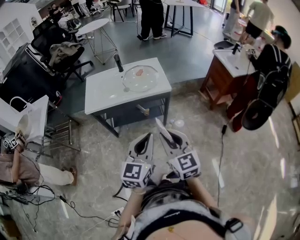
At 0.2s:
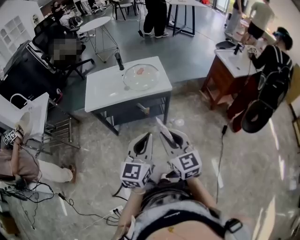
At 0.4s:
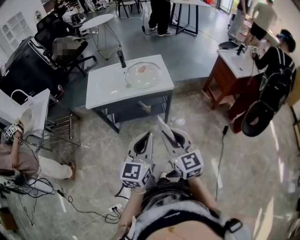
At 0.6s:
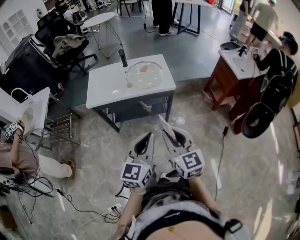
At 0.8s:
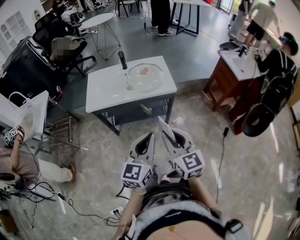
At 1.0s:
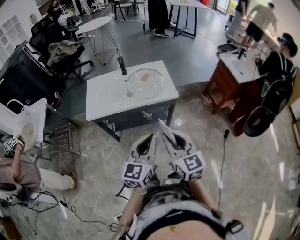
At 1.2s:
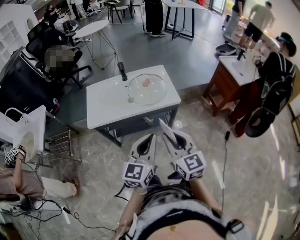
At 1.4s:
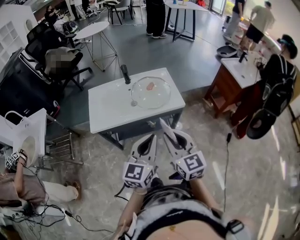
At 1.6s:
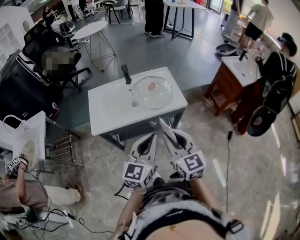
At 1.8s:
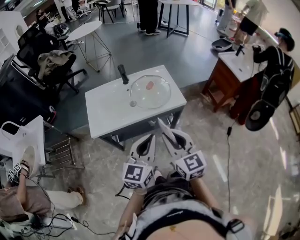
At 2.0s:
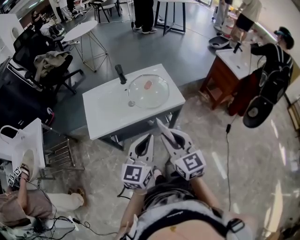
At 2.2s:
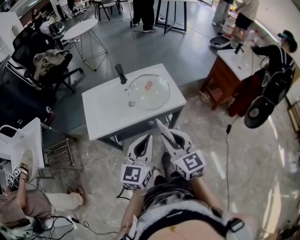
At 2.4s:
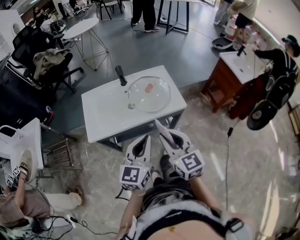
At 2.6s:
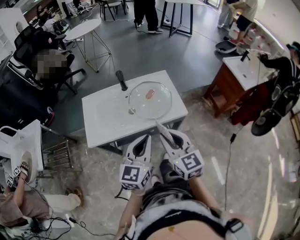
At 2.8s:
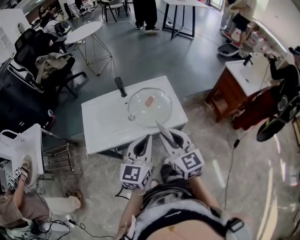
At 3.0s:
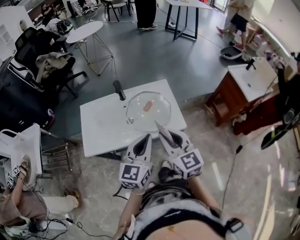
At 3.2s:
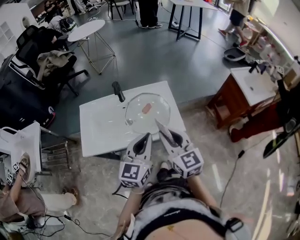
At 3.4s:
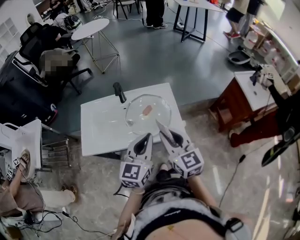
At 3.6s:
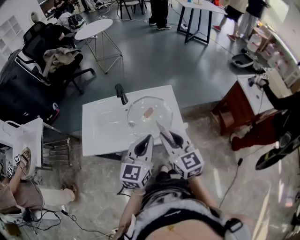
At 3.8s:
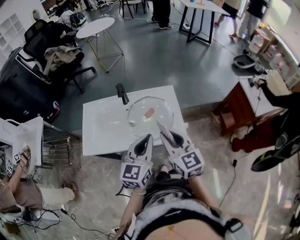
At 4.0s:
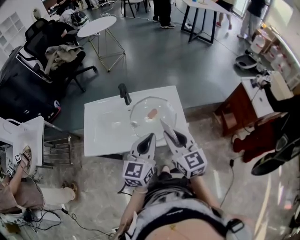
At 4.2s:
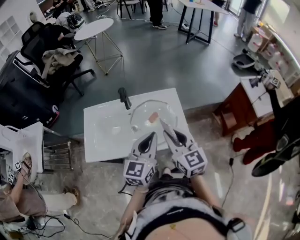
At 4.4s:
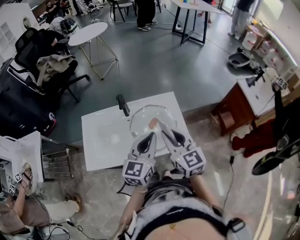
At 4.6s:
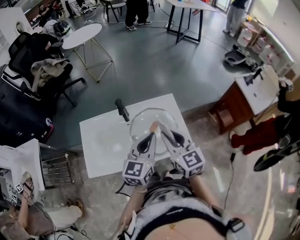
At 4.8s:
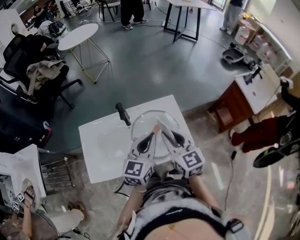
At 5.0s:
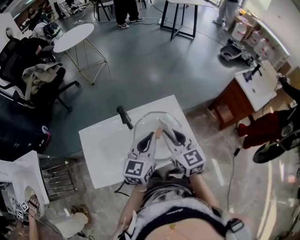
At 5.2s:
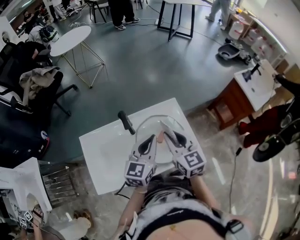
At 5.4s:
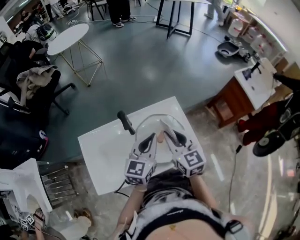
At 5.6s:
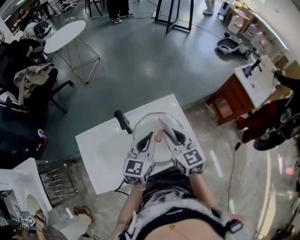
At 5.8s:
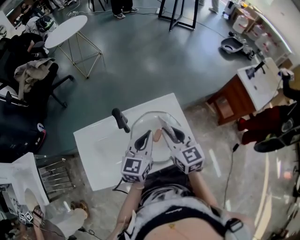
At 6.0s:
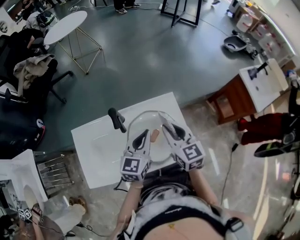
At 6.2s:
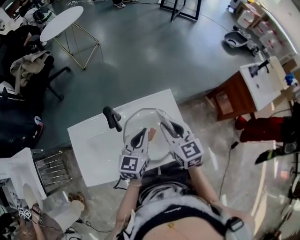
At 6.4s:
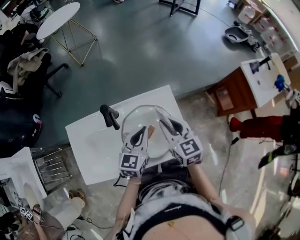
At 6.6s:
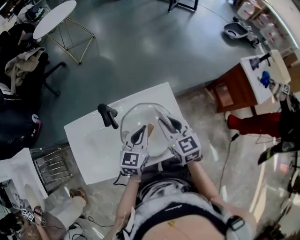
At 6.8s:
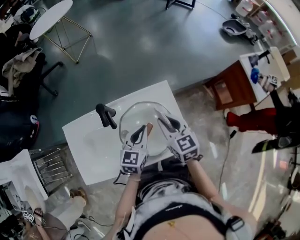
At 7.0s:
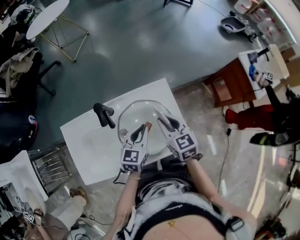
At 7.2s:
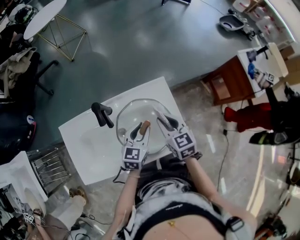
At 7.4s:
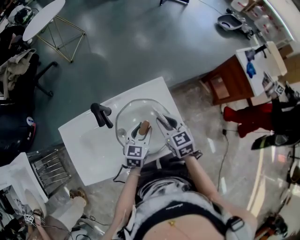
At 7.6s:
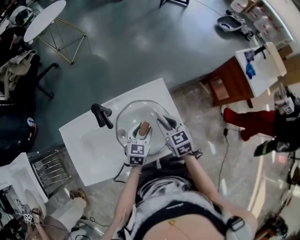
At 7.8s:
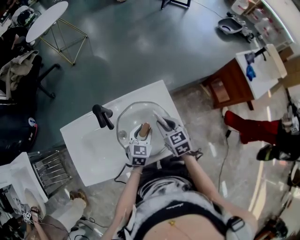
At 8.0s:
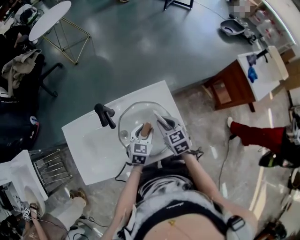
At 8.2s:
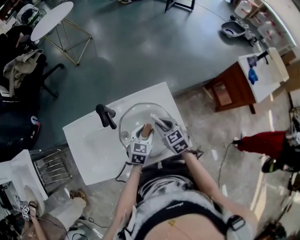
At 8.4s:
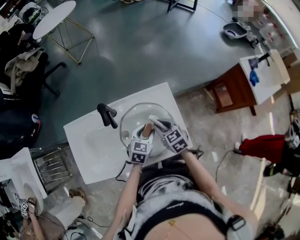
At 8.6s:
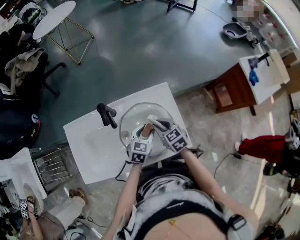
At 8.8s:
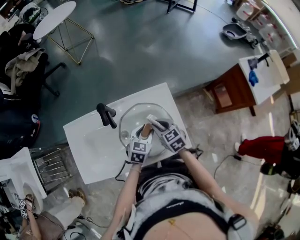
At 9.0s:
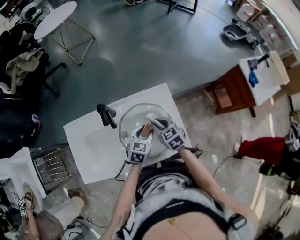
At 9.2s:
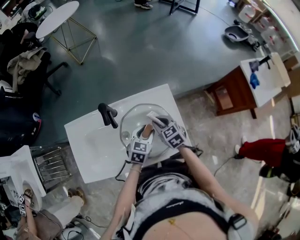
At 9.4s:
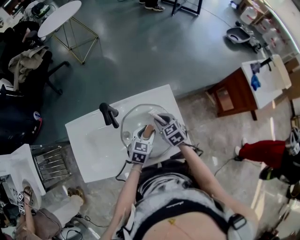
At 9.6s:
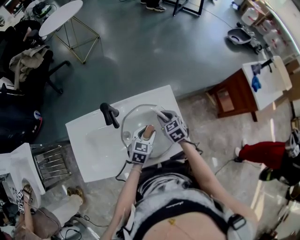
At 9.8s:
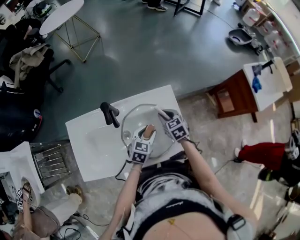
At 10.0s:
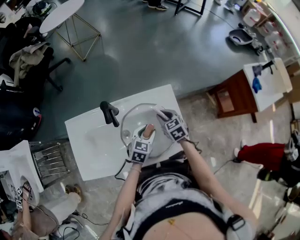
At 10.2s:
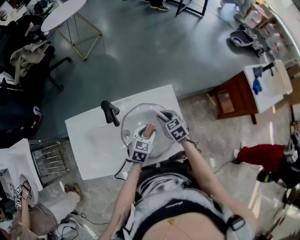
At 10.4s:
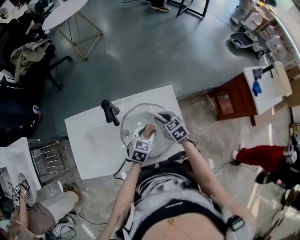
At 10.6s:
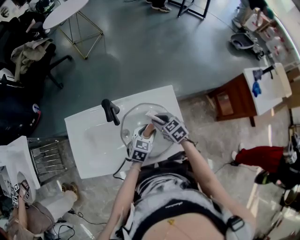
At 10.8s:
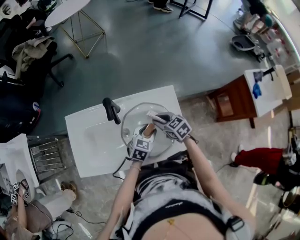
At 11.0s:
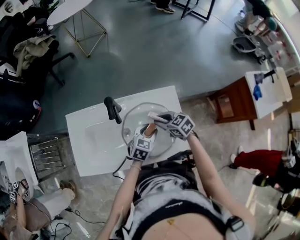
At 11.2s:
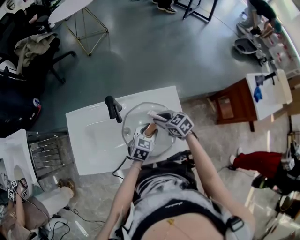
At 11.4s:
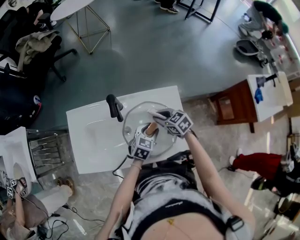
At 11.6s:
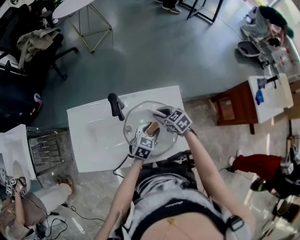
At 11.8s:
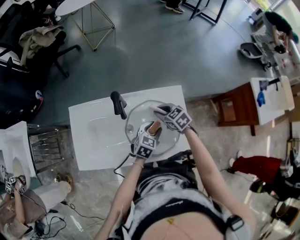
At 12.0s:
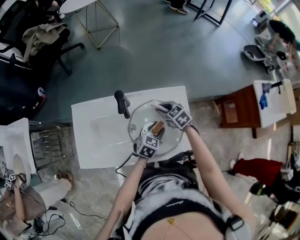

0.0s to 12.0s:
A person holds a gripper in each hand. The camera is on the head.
0.0s to 1.6s: Both grippers move forward and to the left, about 20 cm.
1.6s to 3.0s: The two grippers go about 20 cm forward.
3.0s to 4.4s: The two grippers go about 10 cm forward.
4.4s to 6.0s: The two grippers go about 15 cm forward and downward.
6.0s to 7.6s: Both grippers move downward, approximately 15 cm. The left gripper changes its angle by about 20 degrees, and opens.
7.6s to 9.0s: The right gripper ends up about 5 cm from where it was.
9.0s to 10.4s: There are only small adjustments of the grippers.
10.4s to 12.0s: The right gripper changes place by roughly 5 cm.

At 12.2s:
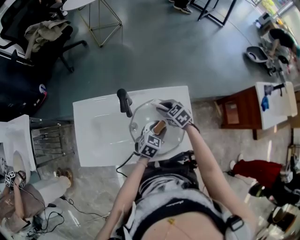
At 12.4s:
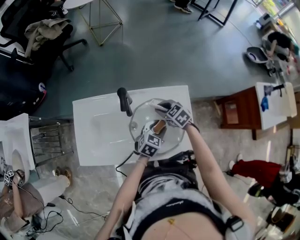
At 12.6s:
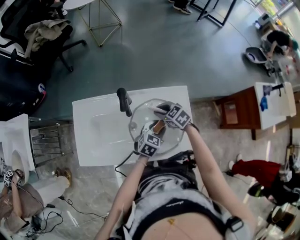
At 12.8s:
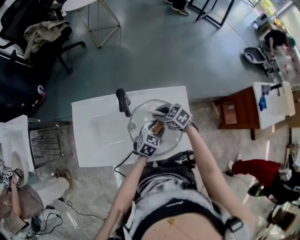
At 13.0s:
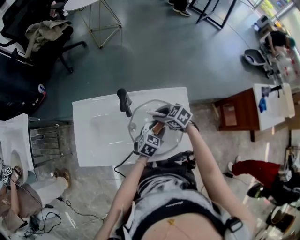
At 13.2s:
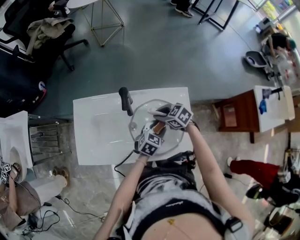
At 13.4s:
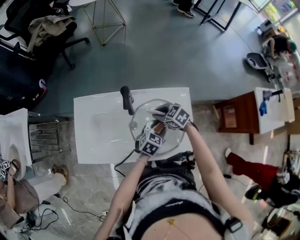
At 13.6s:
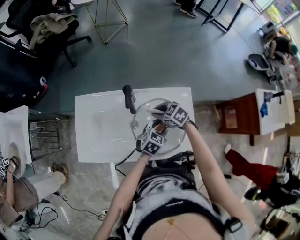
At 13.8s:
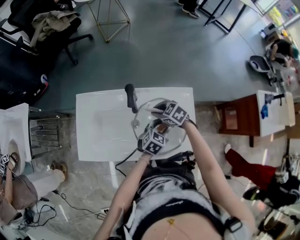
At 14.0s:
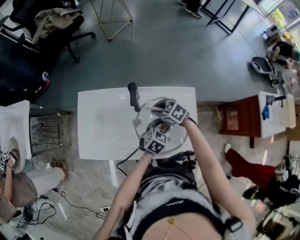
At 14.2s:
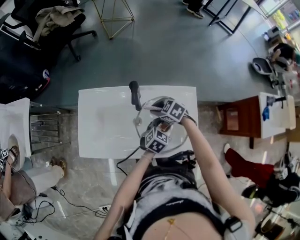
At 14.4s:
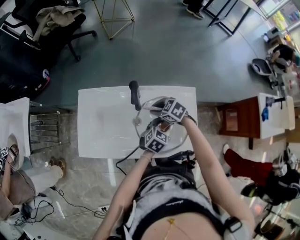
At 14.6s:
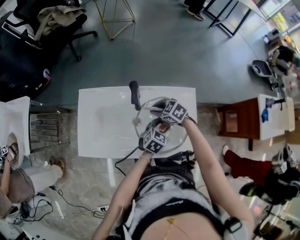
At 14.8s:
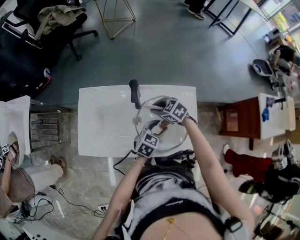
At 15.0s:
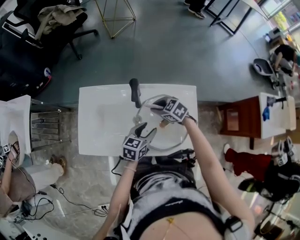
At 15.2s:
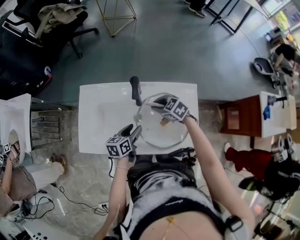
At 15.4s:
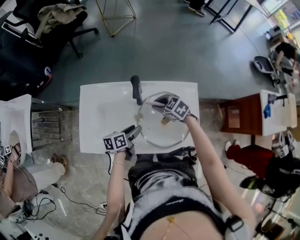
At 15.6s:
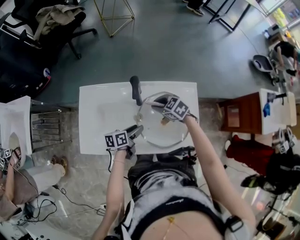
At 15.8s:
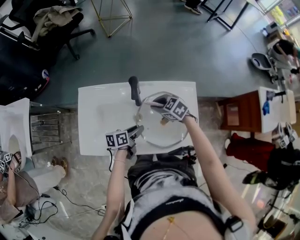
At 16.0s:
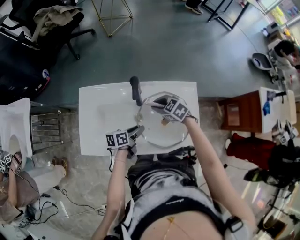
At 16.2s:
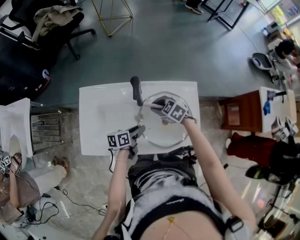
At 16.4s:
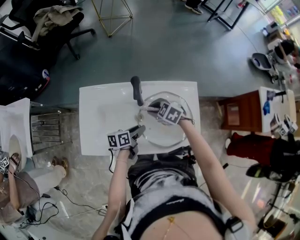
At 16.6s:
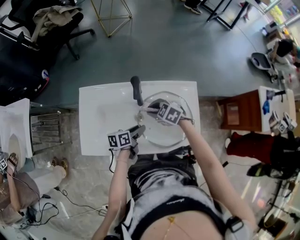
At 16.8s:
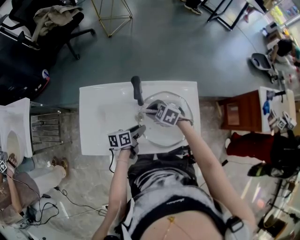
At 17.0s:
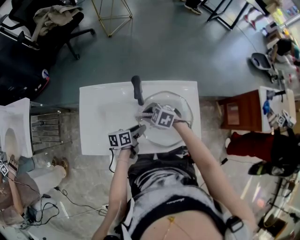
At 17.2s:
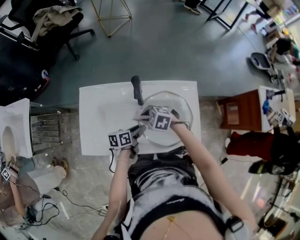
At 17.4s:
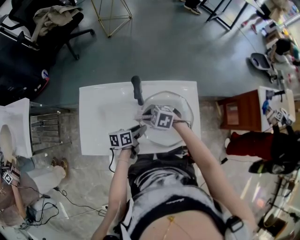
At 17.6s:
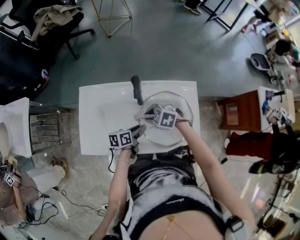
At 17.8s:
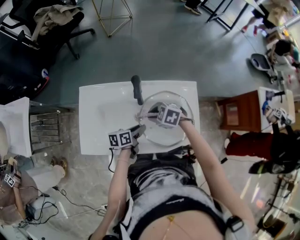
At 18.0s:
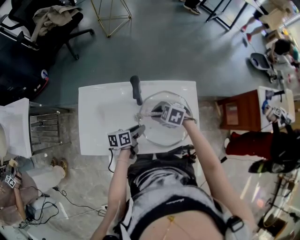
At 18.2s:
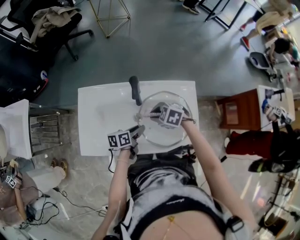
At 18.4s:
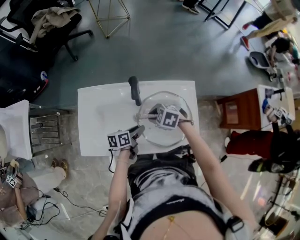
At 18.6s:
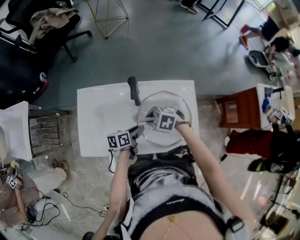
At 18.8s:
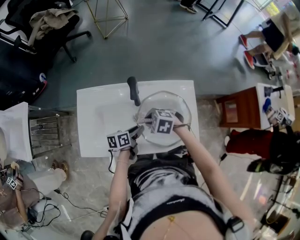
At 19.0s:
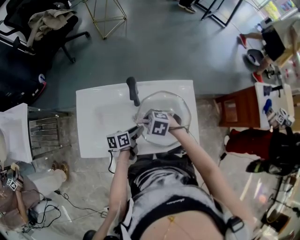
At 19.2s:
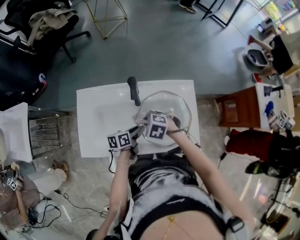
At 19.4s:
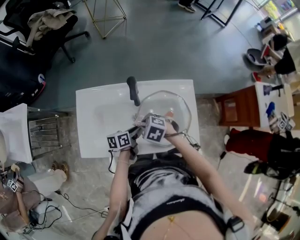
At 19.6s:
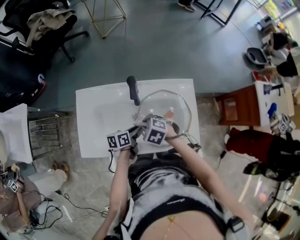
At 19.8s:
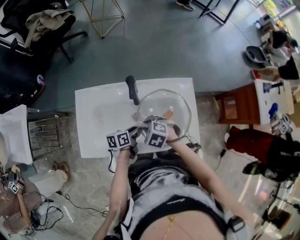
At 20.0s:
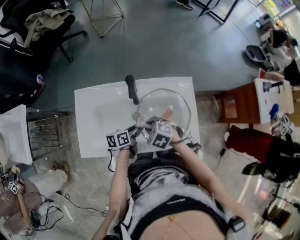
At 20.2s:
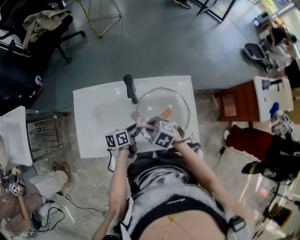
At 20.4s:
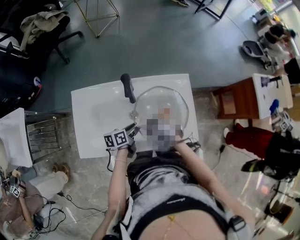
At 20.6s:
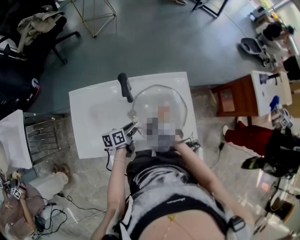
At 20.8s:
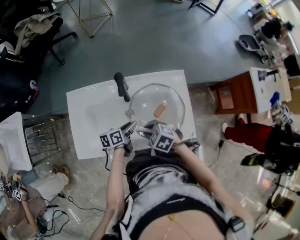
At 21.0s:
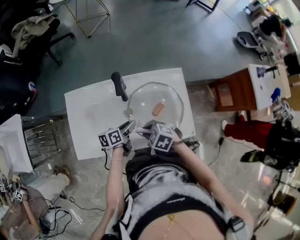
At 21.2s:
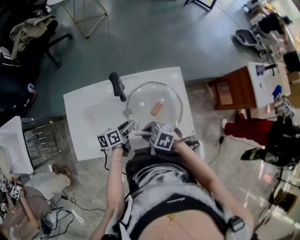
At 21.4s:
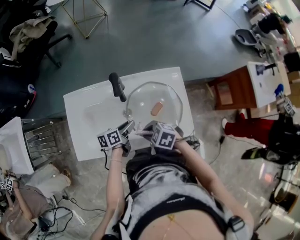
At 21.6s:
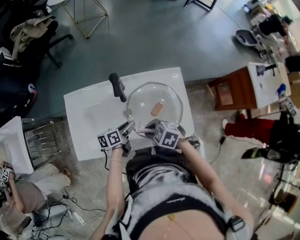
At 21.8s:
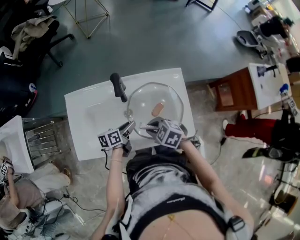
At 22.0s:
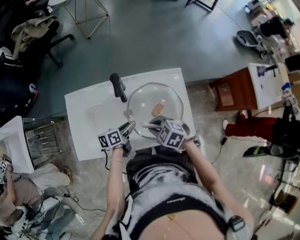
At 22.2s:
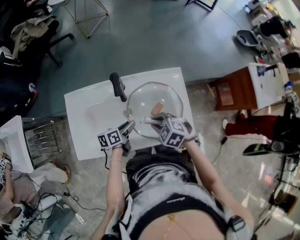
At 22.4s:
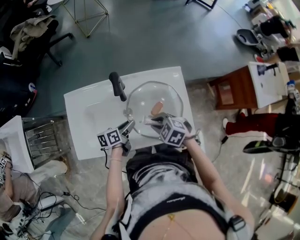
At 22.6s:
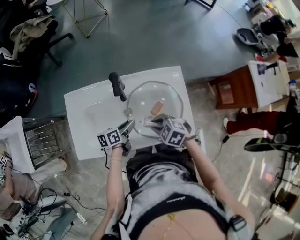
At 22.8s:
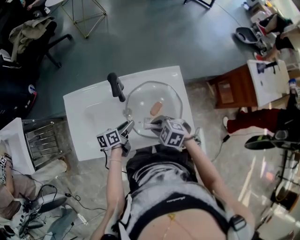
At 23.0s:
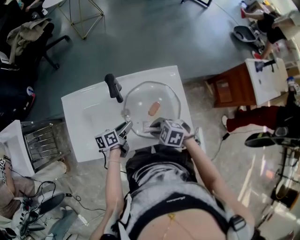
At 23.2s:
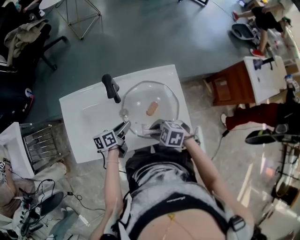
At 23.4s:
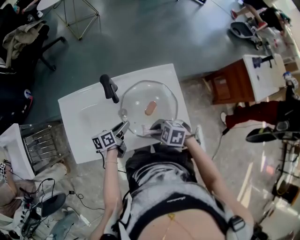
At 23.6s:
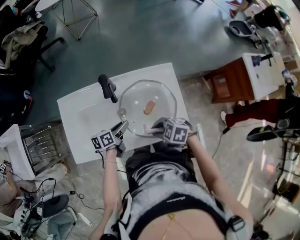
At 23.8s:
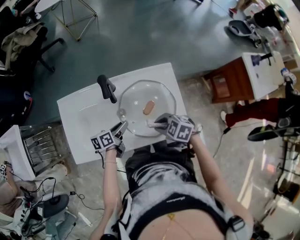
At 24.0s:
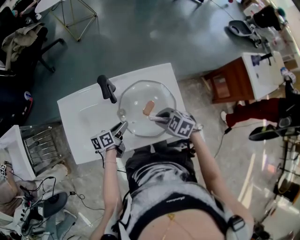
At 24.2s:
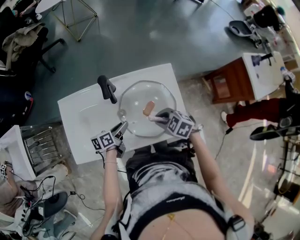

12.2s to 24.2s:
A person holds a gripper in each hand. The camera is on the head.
12.2s to 13.8s: The right gripper travels to the left by approximately 5 cm.
13.8s to 15.2s: The left gripper changes place by roughly 20 cm, and rolls counterclockwise, seen from behind, by about 40 degrees.
16.6s to 18.2s: There are only small adjustments of the grippers.
18.2s to 19.8s: The right gripper ends up approximately 5 cm from where it was.
19.8s to 21.2s: The right gripper moves some 5 cm.
21.2s to 22.6s: The right gripper ends up roughly 5 cm from where it was.
22.6s to 24.2s: The right gripper shifts by about 5 cm.
